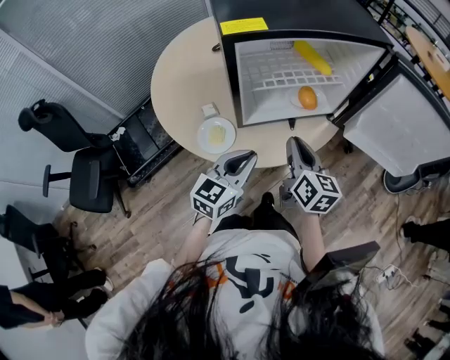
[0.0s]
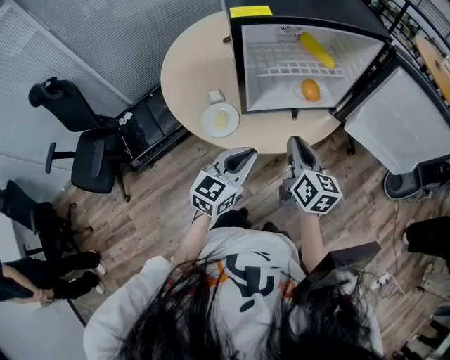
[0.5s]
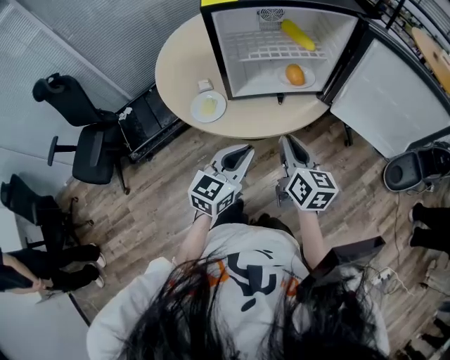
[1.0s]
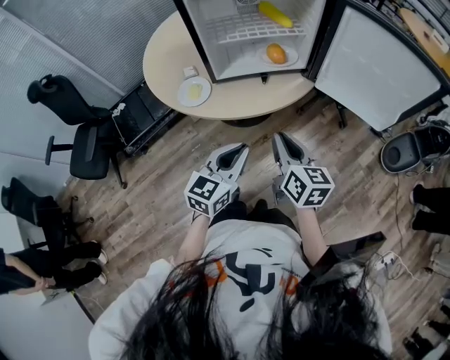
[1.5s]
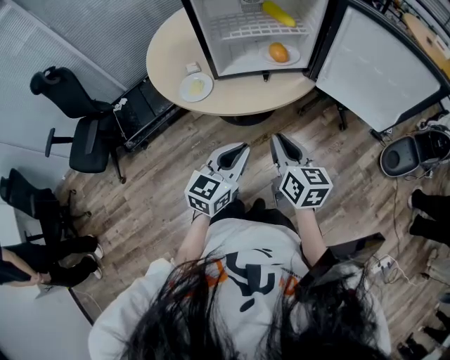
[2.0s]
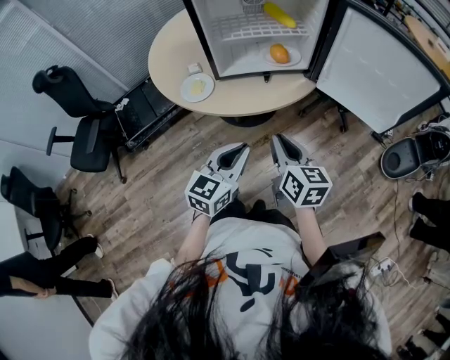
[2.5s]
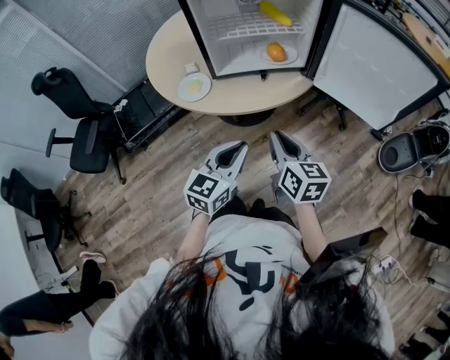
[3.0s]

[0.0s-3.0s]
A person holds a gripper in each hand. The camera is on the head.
0.0s to 1.5s: Both grippers travel together backward and to the right, roughly 20 cm.
1.5s to 3.0s: The grippers stay close to where they were, moving slightly.

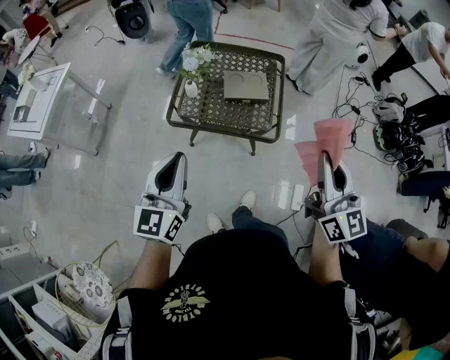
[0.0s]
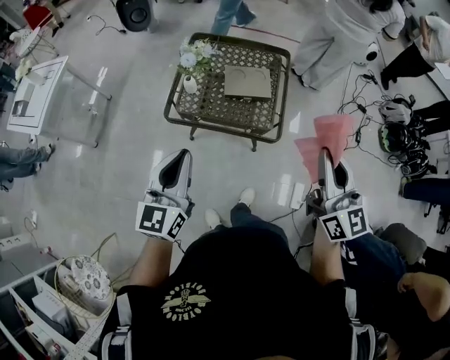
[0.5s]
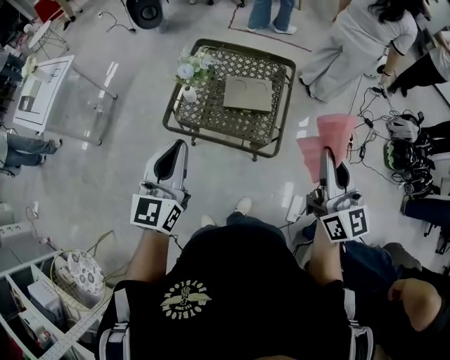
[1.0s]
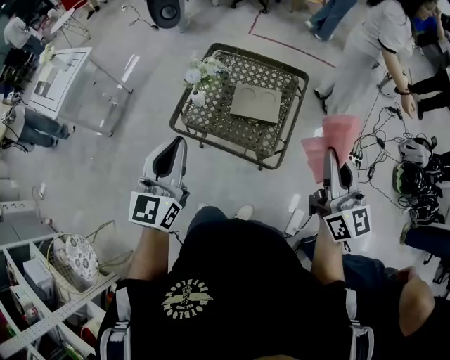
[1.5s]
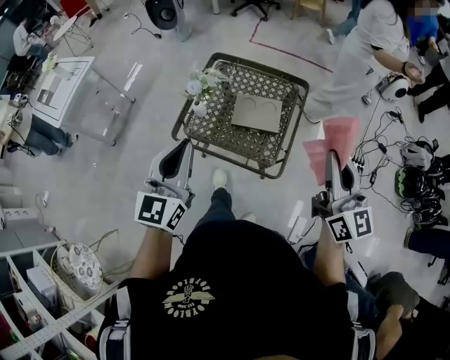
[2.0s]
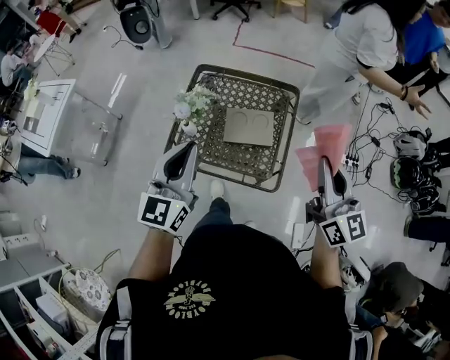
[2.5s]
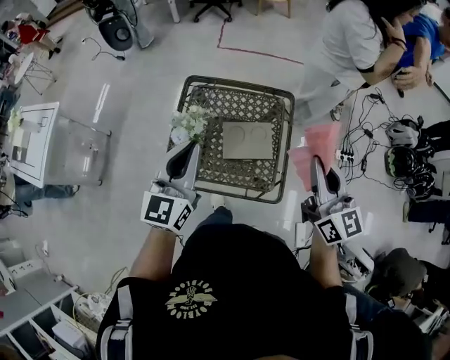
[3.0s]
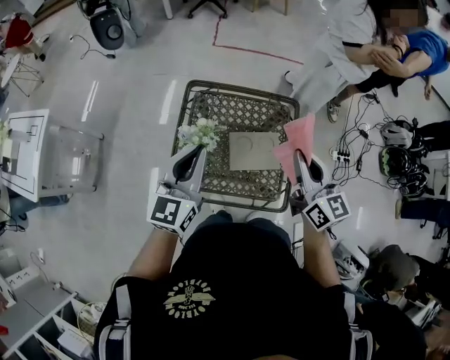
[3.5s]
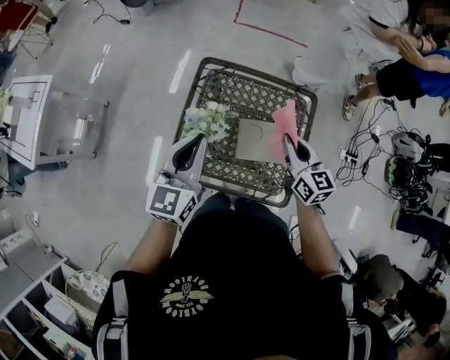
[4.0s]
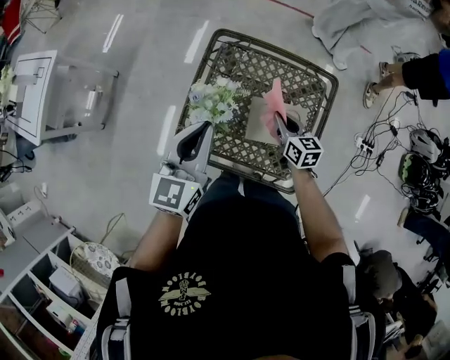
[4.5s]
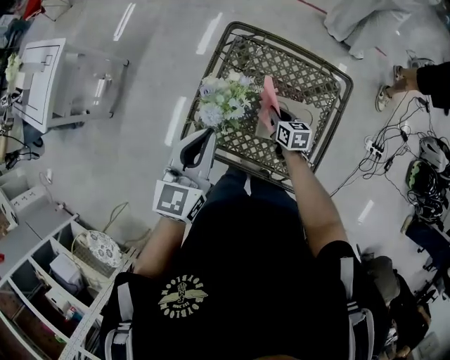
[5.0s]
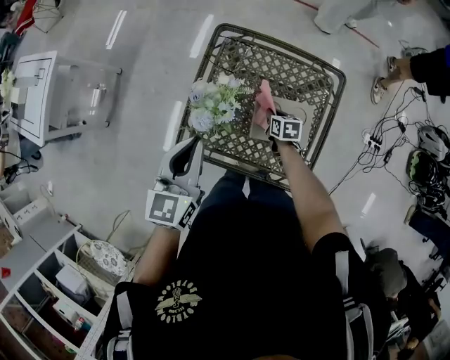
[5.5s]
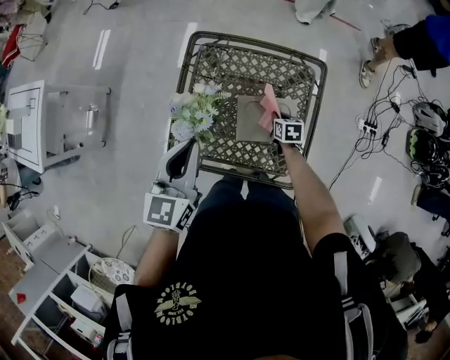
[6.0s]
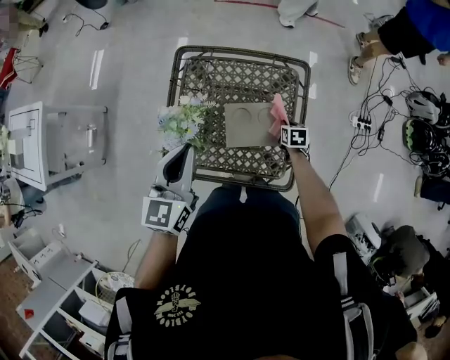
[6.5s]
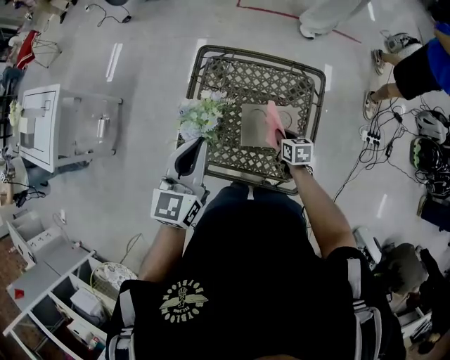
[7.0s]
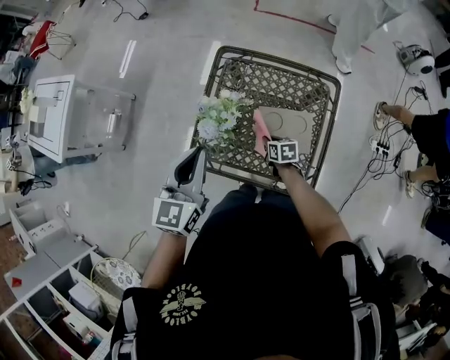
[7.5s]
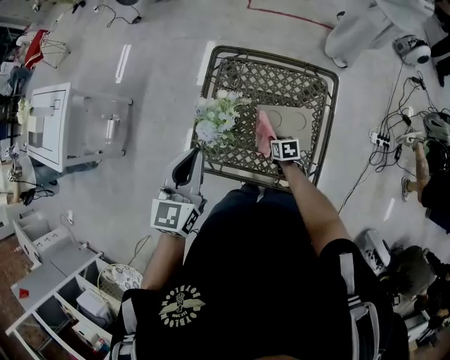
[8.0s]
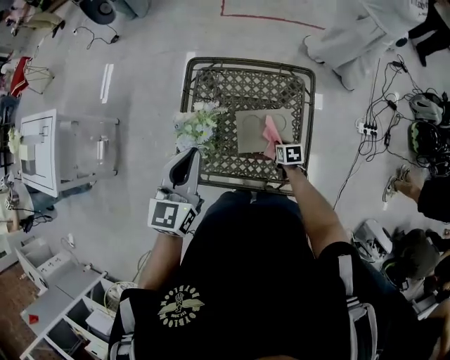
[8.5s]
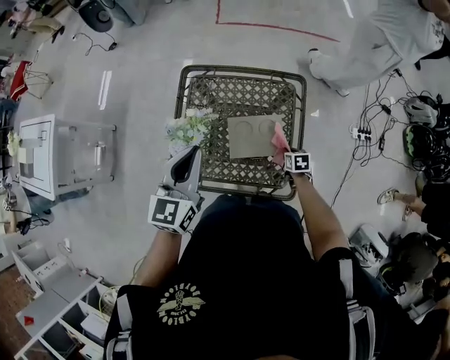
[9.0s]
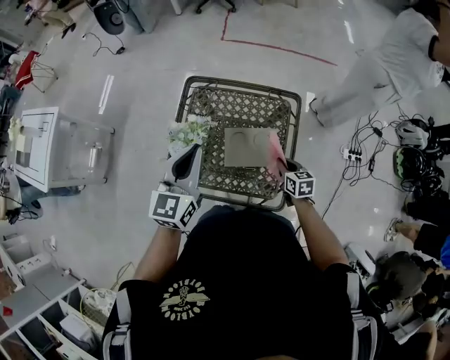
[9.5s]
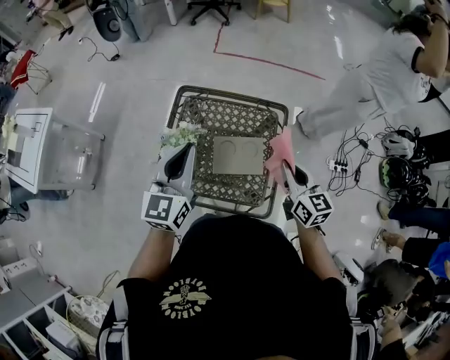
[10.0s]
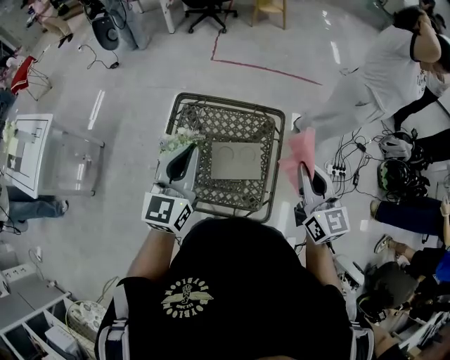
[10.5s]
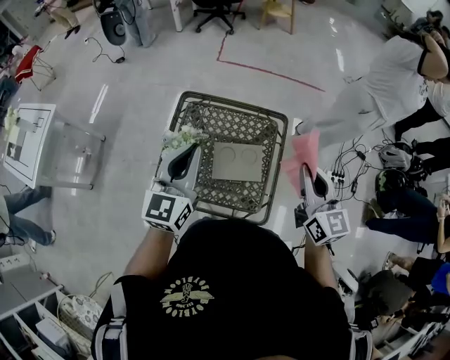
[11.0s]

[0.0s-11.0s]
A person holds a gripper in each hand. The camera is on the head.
0.0s to 2.0s: The grippers both shift forward and to the right by approximately 20 cm.
2.0s to 3.5s: The left gripper heads forward, covering about 30 cm, while the right gripper heads forward and to the left, covering roughly 25 cm.
3.5s to 5.5s: The right gripper shifts approximately 50 cm downward, and points its fingers approximately 50 degrees further downward; the left gripper shifts some 10 cm downward, and turns by roughly 20 degrees.
5.5s to 7.5s: The left gripper moves approximately 10 cm to the right and comes back. Meanwhile the right gripper heads backward, covering some 10 cm, and moves approximately 20 cm to the right and comes back.
7.5s to 9.0s: The left gripper is displaced to the right by some 10 cm, while the right gripper is displaced to the right by approximately 20 cm.
9.0s to 11.0s: The right gripper heads upward, covering about 50 cm, and tilts its fingers roughly 60 degrees upward, while the left gripper shifts approximately 10 cm upward.

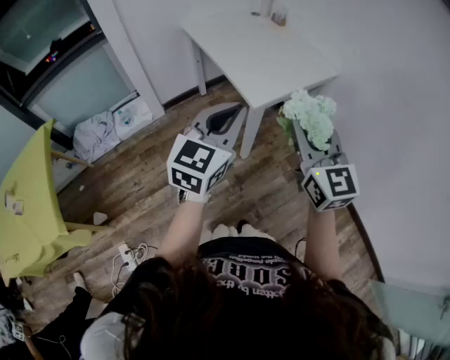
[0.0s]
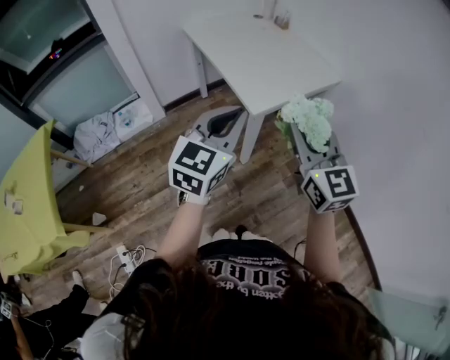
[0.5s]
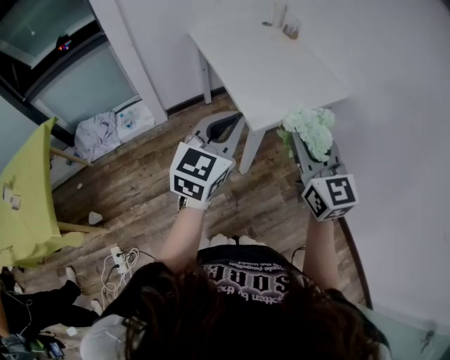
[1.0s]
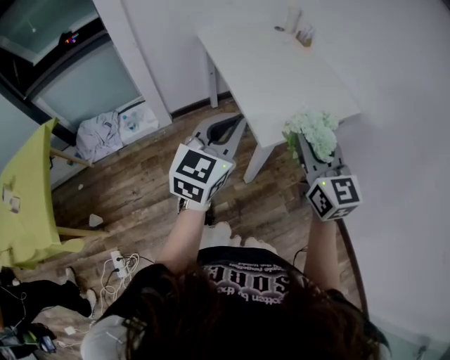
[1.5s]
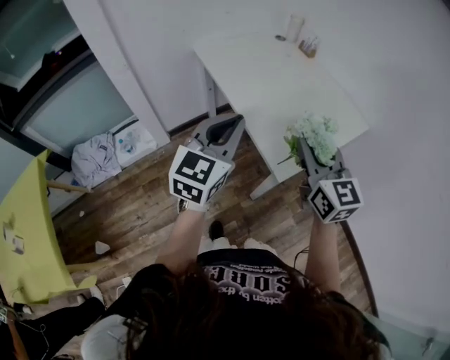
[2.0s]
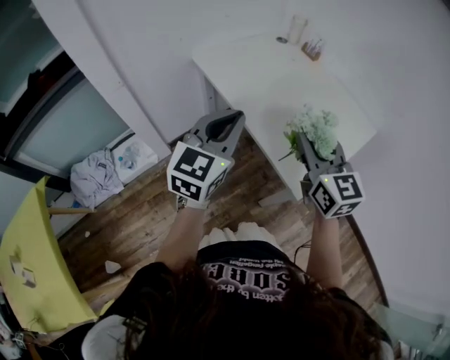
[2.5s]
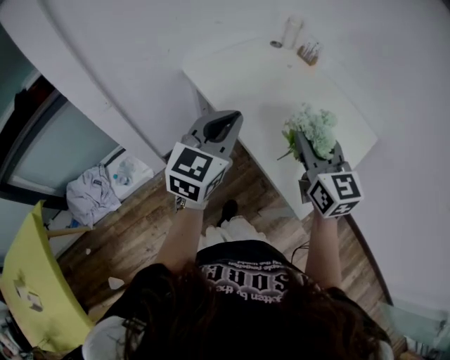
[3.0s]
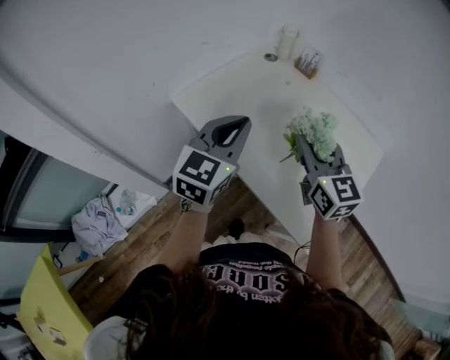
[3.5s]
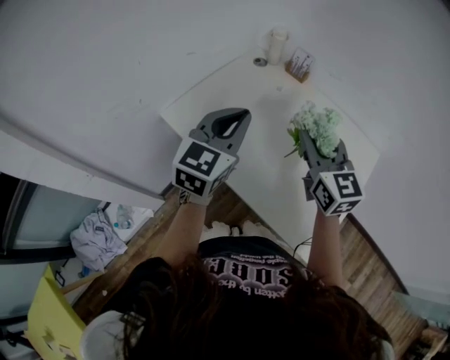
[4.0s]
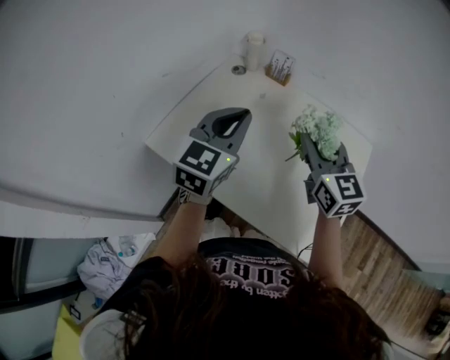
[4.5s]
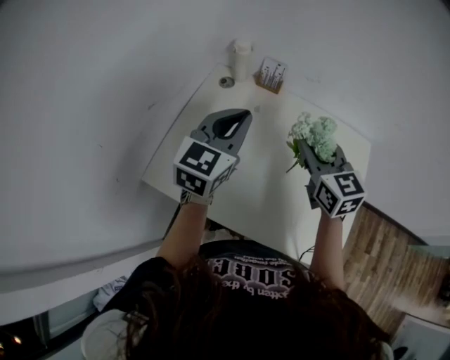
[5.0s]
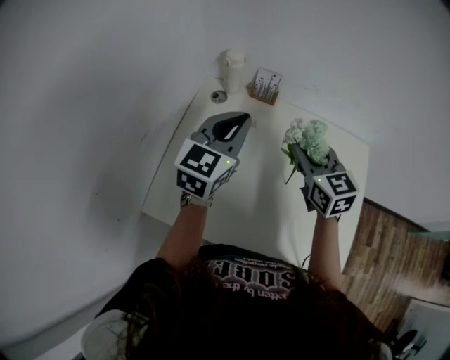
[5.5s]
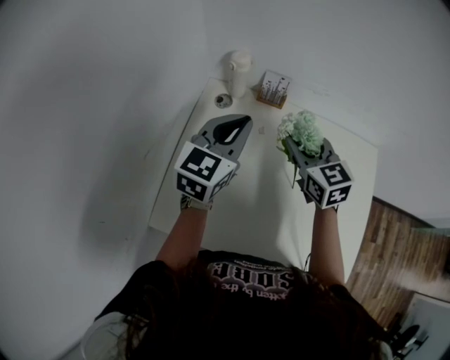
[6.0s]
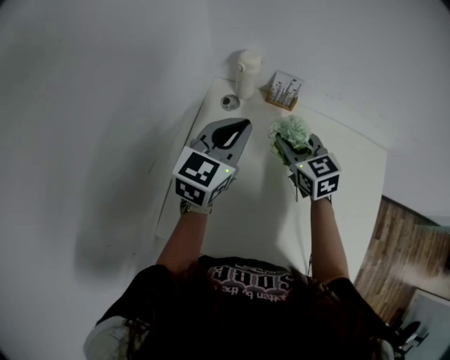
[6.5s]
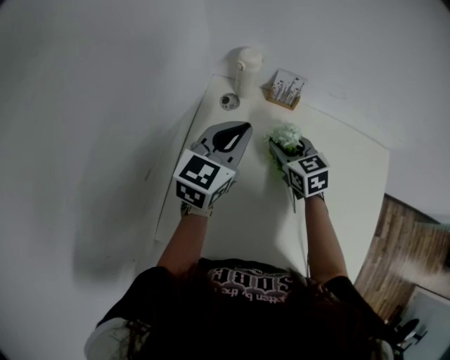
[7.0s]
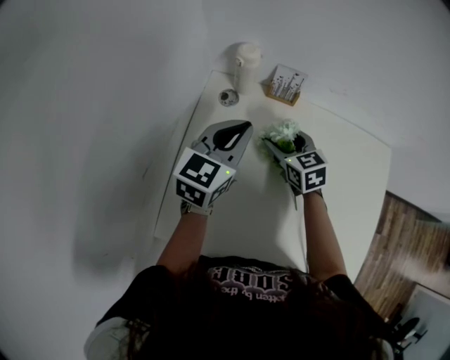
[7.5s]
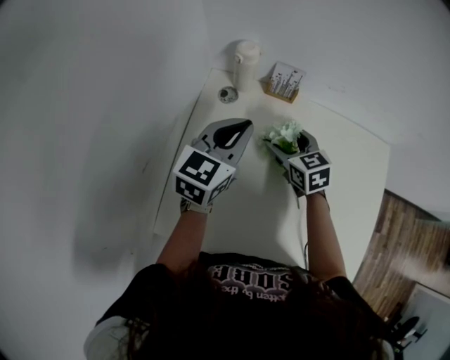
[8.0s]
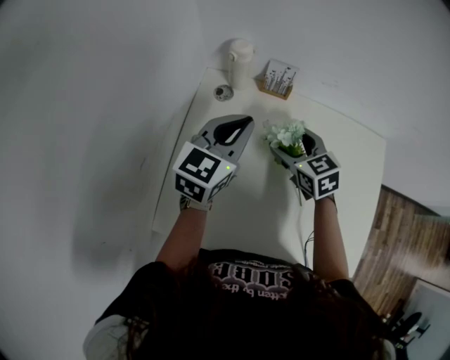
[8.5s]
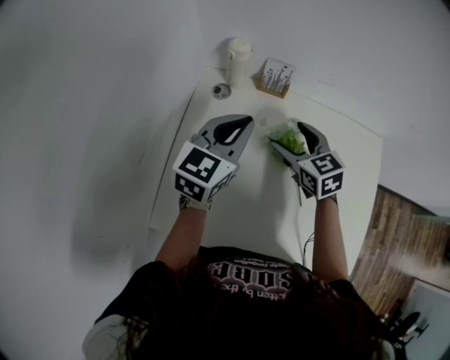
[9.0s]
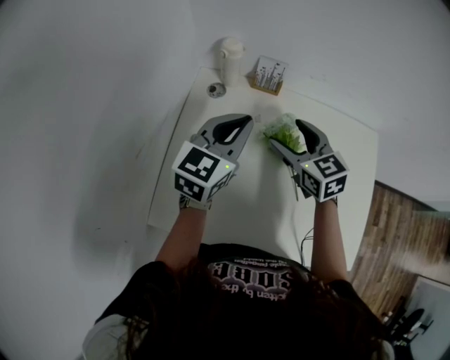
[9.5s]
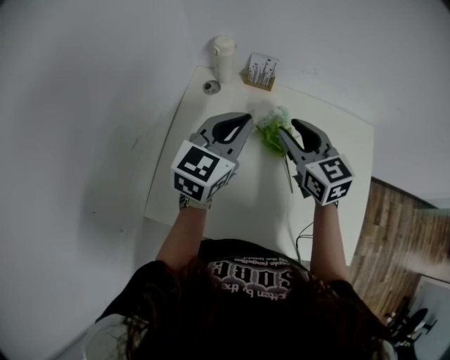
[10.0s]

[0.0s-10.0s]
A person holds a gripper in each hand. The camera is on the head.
0.0s to 2.0s: The left gripper moves forward and to the left, roughly 30 cm; the right gripper travels forward by some 30 cm.
2.0s to 4.0s: Both grippers move forward, approximately 35 cm.
4.0s to 6.0s: Both grippers move forward, some 25 cm. The left gripper swivels some 30 degrees. The right gripper swivels about 30 degrees.
6.0s to 8.0s: The left gripper travels downward by roughly 5 cm. Meanwhile the right gripper goes some 15 cm downward, and opens.
8.0s to 10.0s: The left gripper heads backward and to the right, covering roughly 10 cm. The right gripper heads upward, backward and to the right, covering approximately 15 cm, and closes its fingers.

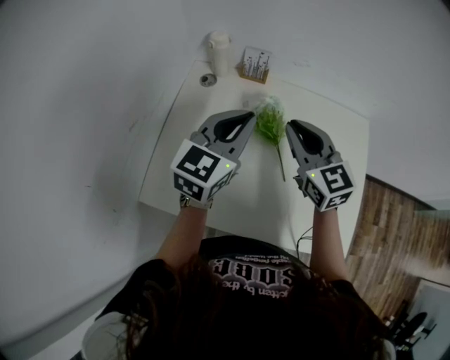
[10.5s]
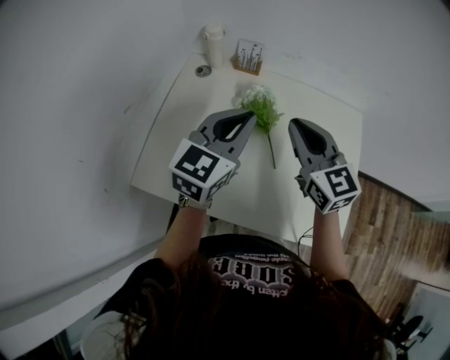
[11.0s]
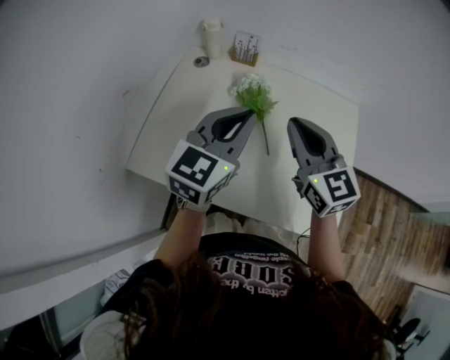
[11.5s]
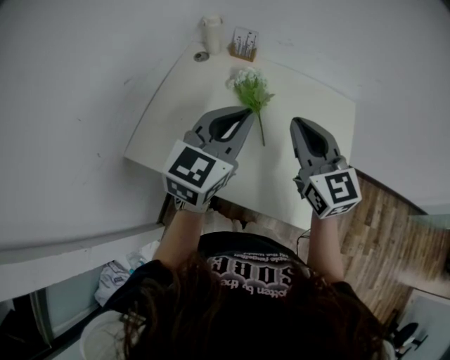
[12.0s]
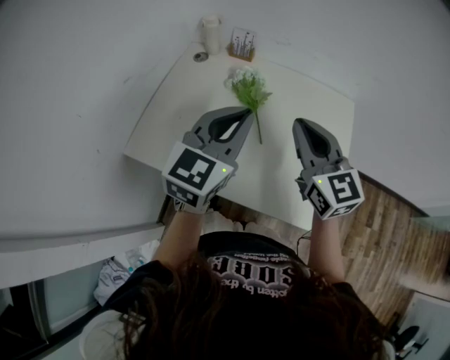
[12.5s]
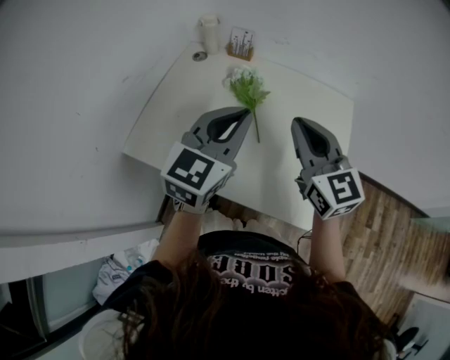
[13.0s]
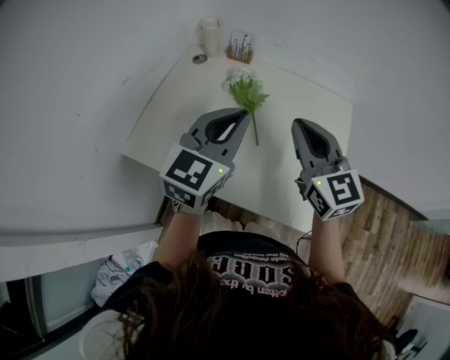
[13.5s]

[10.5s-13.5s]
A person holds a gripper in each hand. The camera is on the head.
10.5s to 12.0s: Both grippers travel together backward and to the right, about 15 cm.
12.0s to 13.5s: The grippers stay close to where they were, moving slightly.
